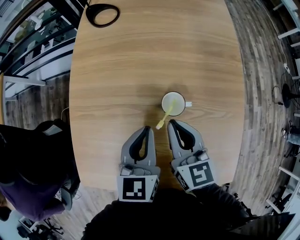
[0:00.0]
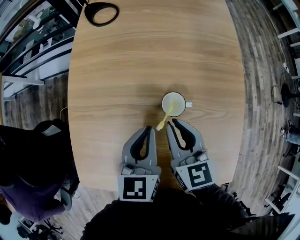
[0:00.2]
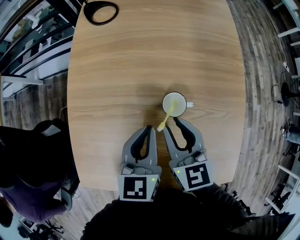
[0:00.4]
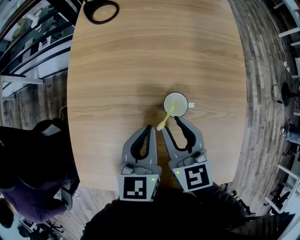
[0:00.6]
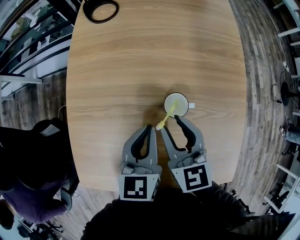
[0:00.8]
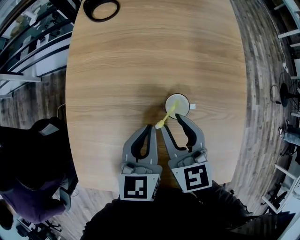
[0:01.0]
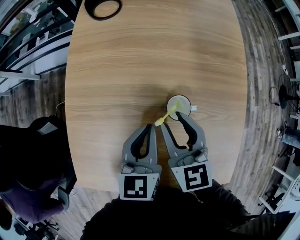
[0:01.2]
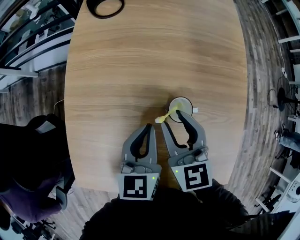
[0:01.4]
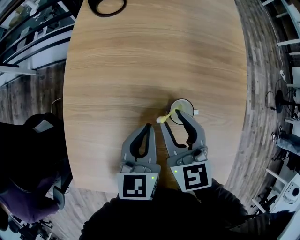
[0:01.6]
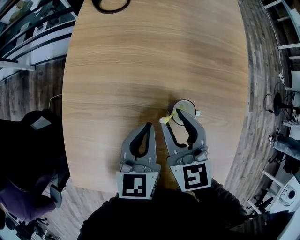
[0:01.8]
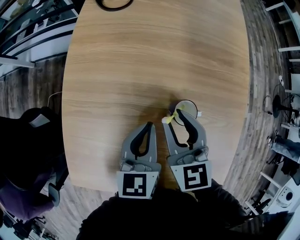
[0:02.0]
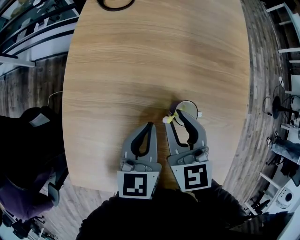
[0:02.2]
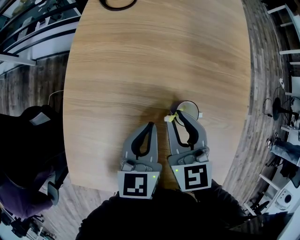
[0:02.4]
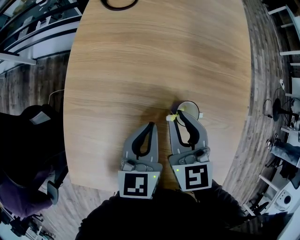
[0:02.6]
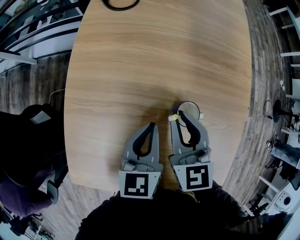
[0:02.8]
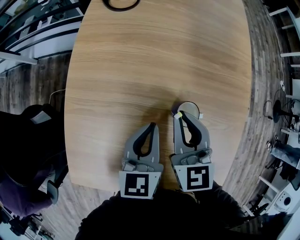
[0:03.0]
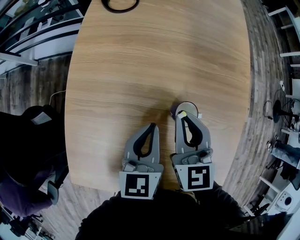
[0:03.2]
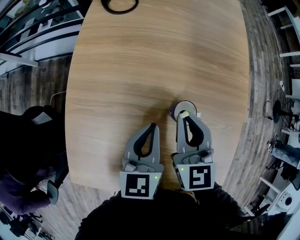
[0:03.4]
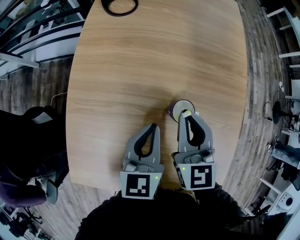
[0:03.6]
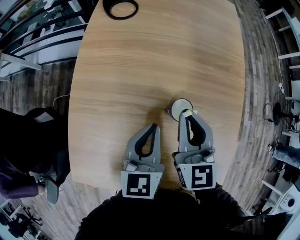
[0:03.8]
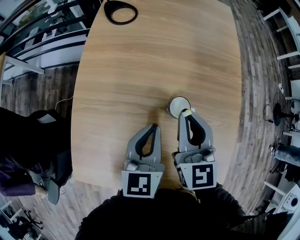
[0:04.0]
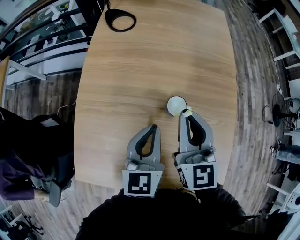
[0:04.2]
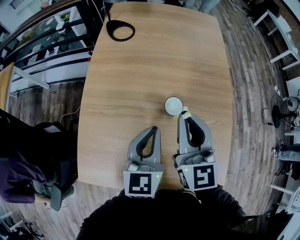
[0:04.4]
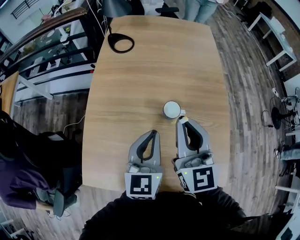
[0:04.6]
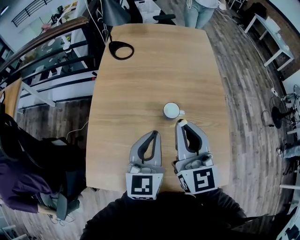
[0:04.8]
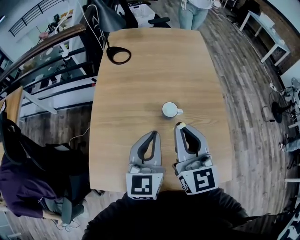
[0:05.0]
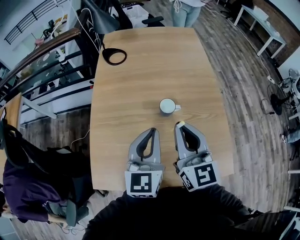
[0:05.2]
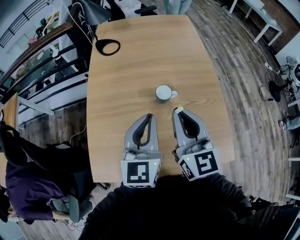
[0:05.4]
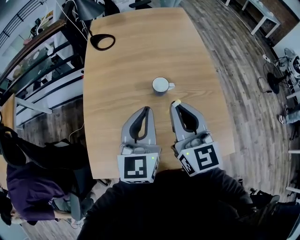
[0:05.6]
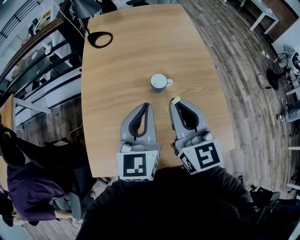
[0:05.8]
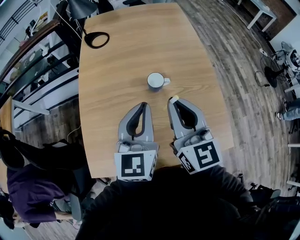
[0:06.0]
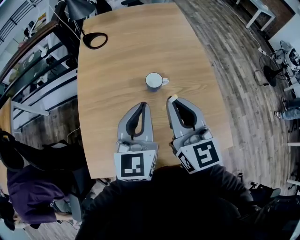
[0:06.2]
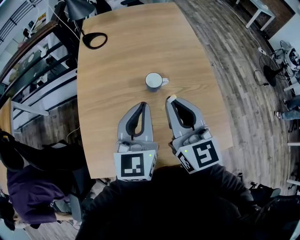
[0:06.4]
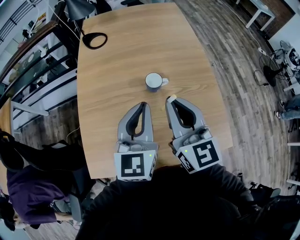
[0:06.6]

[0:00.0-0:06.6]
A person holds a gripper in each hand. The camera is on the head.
0:00.0 to 0:01.6: The right gripper moves approximately 5 cm, and opens its fingers.
0:01.6 to 0:03.2: The right gripper closes.
0:03.2 to 0:05.0: The two grippers go about 20 cm upward and backward. The right gripper turns by roughly 20 degrees. The left gripper rotates about 20 degrees.
0:05.0 to 0:06.6: There are only small adjustments of the grippers.

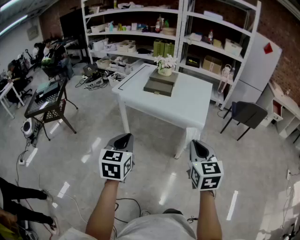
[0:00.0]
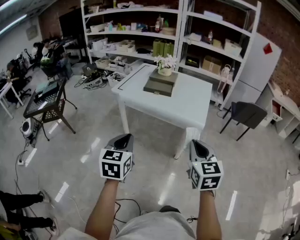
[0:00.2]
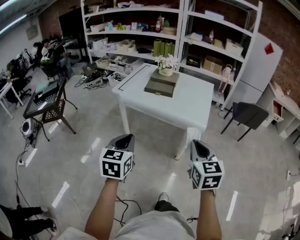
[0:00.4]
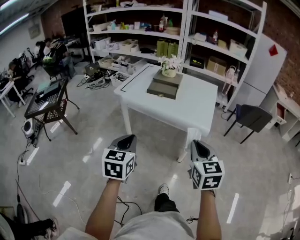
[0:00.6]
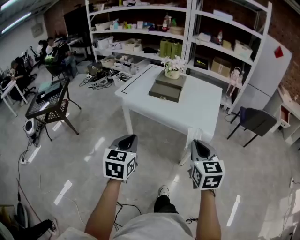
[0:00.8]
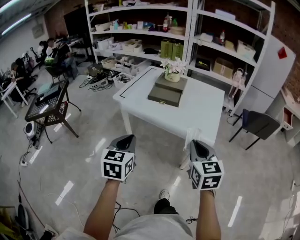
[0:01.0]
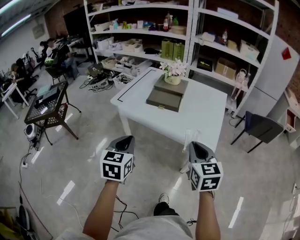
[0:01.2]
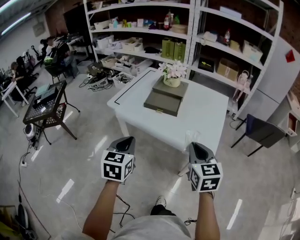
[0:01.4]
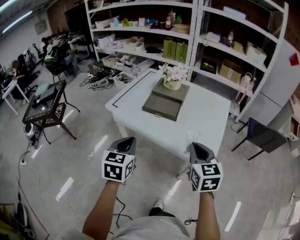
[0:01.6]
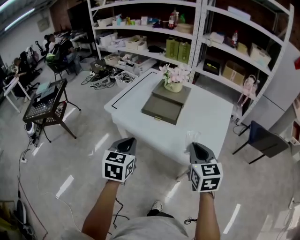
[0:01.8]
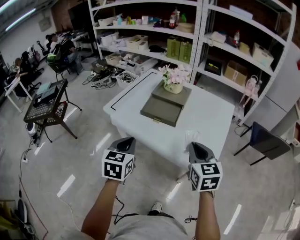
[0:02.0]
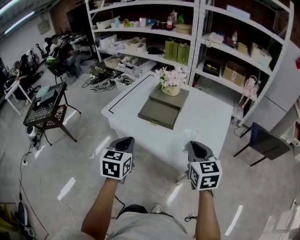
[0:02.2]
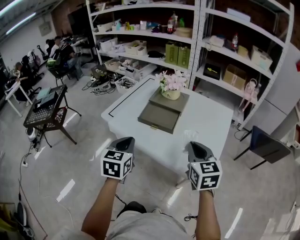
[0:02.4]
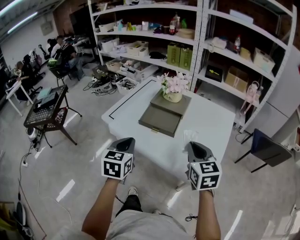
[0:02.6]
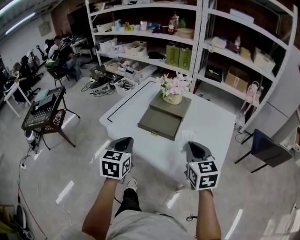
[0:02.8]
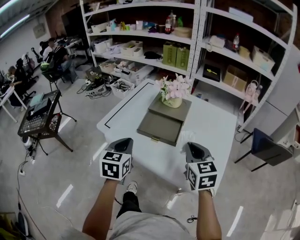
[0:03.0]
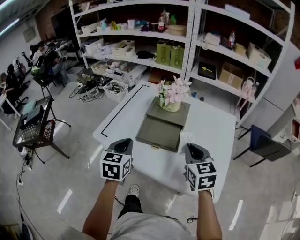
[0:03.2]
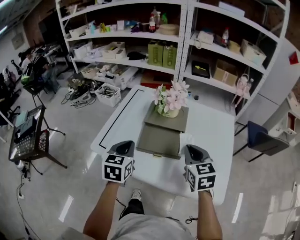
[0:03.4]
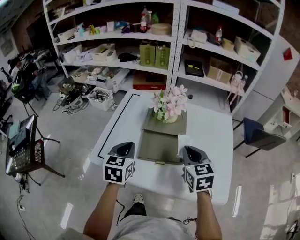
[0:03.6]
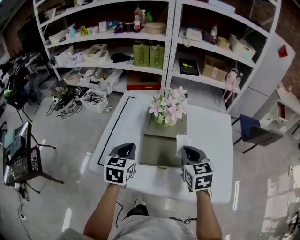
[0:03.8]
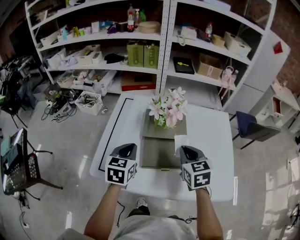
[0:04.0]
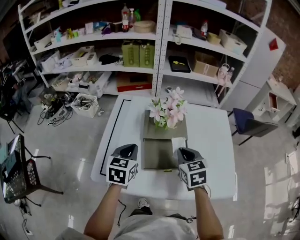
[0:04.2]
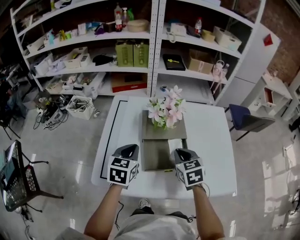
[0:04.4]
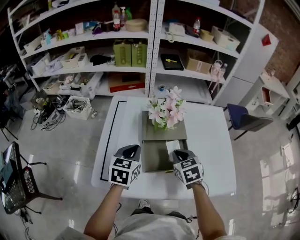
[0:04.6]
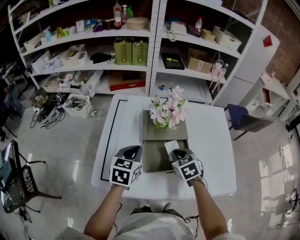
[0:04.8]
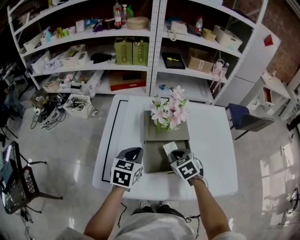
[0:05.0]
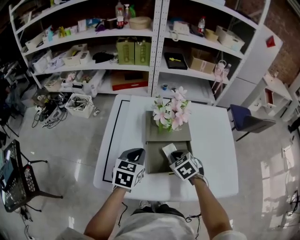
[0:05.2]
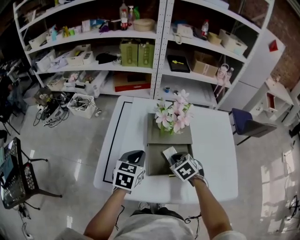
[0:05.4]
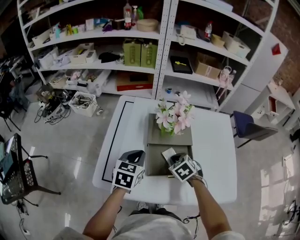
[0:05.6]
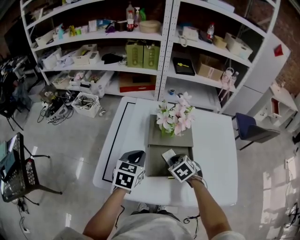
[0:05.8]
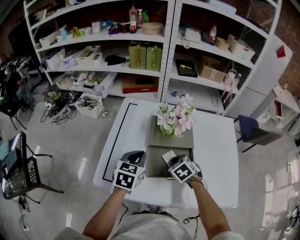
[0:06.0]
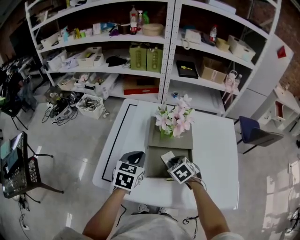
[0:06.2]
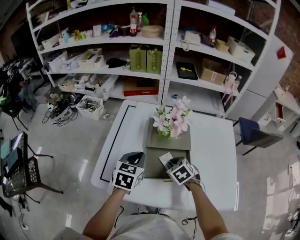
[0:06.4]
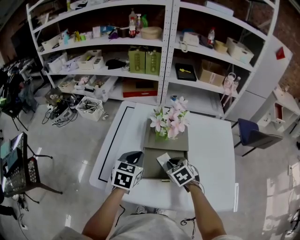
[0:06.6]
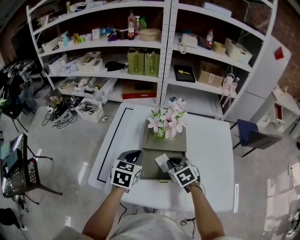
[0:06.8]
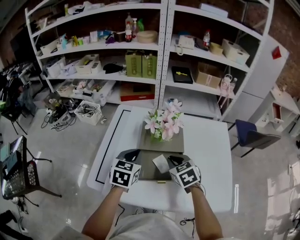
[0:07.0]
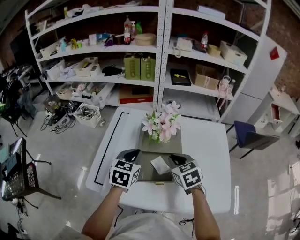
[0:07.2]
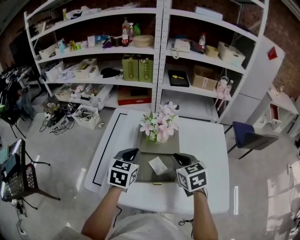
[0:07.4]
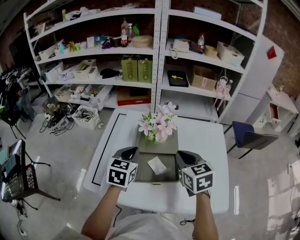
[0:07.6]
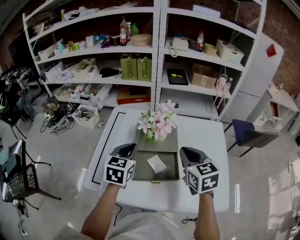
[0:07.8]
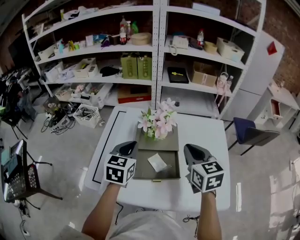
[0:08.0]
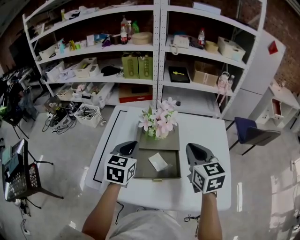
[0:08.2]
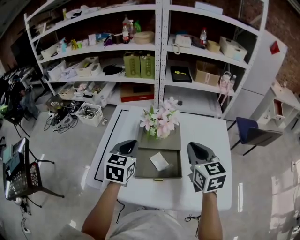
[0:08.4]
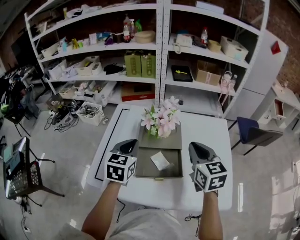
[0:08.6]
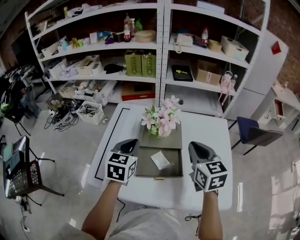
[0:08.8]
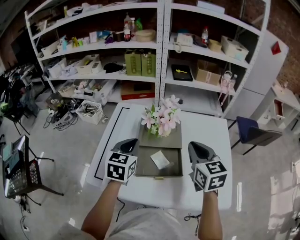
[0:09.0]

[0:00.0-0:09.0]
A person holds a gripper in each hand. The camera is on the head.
0:00.0 to 0:01.6: The two grippers go approximately 30 cm forward.
0:01.6 to 0:03.0: The grippers both shift forward by approximately 20 cm.
0:03.0 to 0:04.4: The right gripper ends up roughly 20 cm from where it was, and turns by some 30 degrees; the left gripper moves approximately 25 cm, and changes its angle by some 30 degrees.
0:04.4 to 0:06.0: The right gripper travels downward by some 10 cm, and swivels some 30 degrees.
0:06.0 to 0:07.6: The right gripper heads upward and to the right, covering about 20 cm, and angles its fingers upward, by roughly 30 degrees. Meanwhile the left gripper travels upward by roughly 5 cm.
0:07.6 to 0:09.0: The grippers make only small movements.

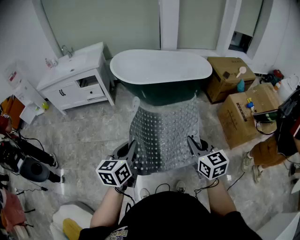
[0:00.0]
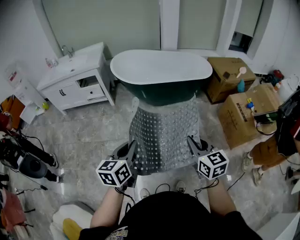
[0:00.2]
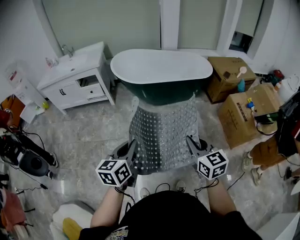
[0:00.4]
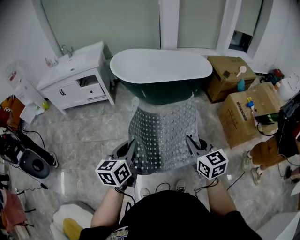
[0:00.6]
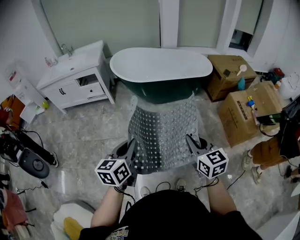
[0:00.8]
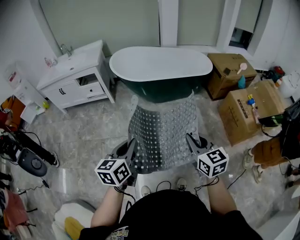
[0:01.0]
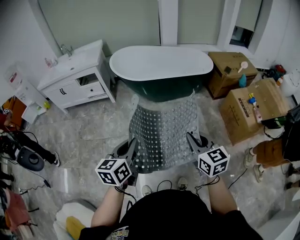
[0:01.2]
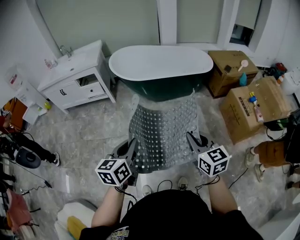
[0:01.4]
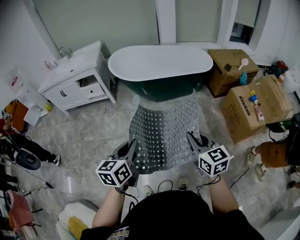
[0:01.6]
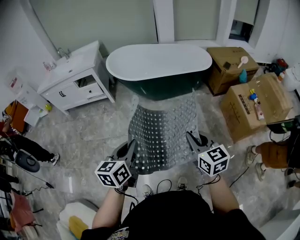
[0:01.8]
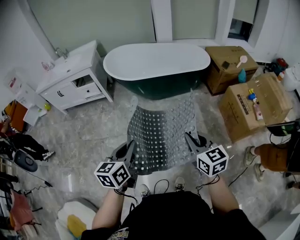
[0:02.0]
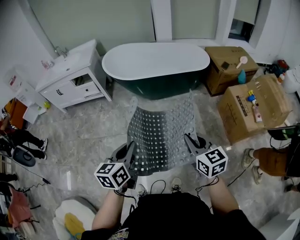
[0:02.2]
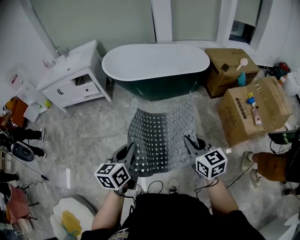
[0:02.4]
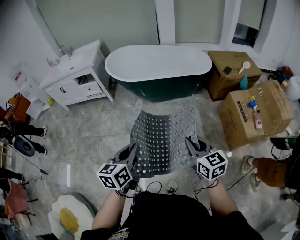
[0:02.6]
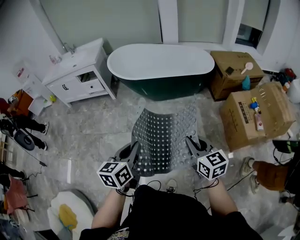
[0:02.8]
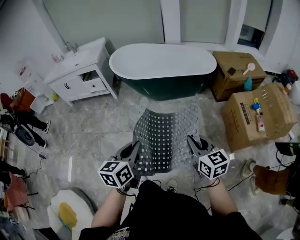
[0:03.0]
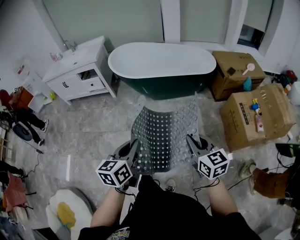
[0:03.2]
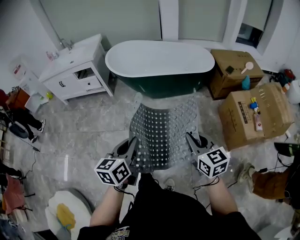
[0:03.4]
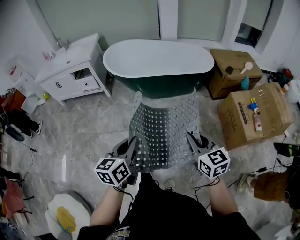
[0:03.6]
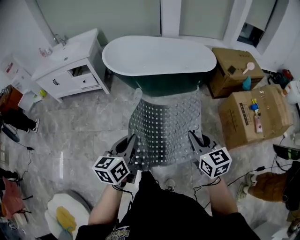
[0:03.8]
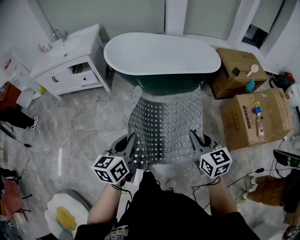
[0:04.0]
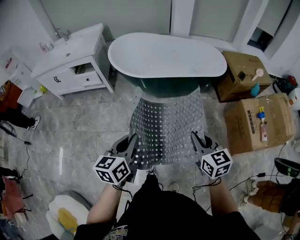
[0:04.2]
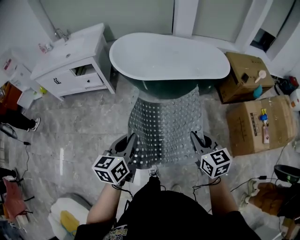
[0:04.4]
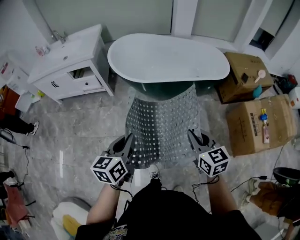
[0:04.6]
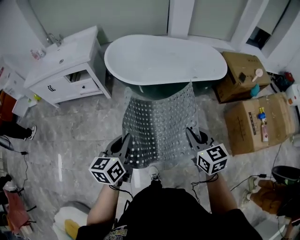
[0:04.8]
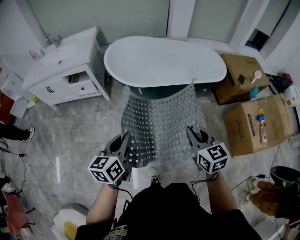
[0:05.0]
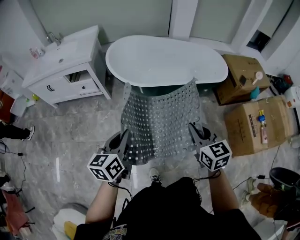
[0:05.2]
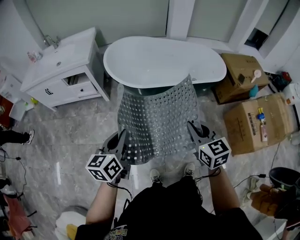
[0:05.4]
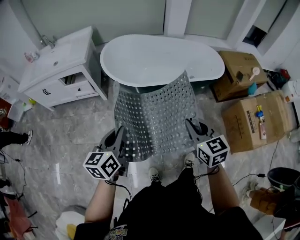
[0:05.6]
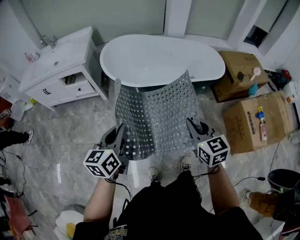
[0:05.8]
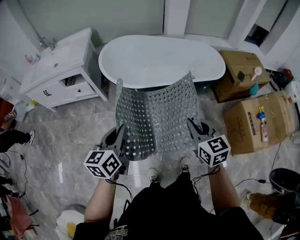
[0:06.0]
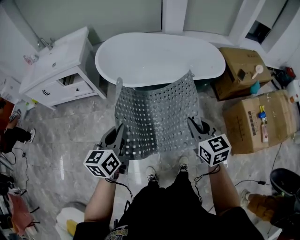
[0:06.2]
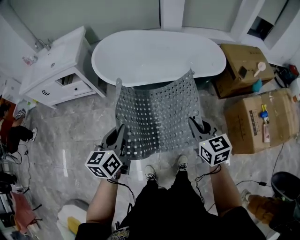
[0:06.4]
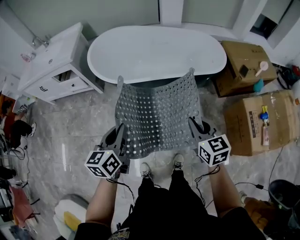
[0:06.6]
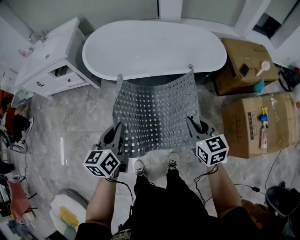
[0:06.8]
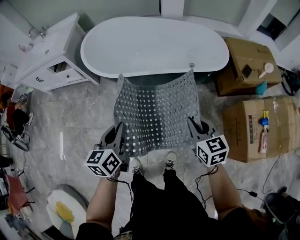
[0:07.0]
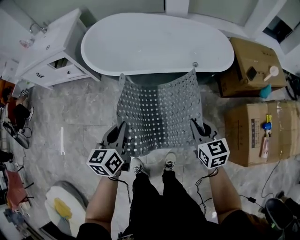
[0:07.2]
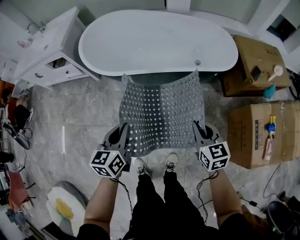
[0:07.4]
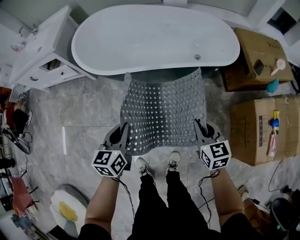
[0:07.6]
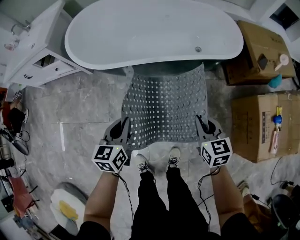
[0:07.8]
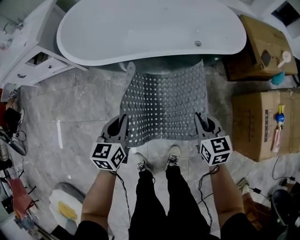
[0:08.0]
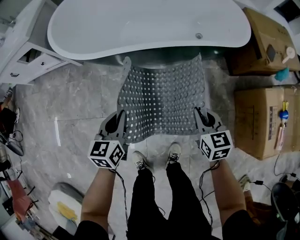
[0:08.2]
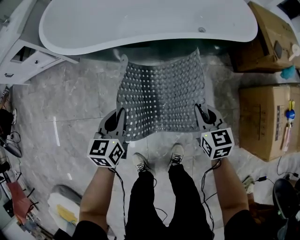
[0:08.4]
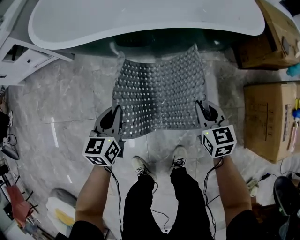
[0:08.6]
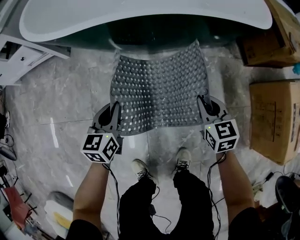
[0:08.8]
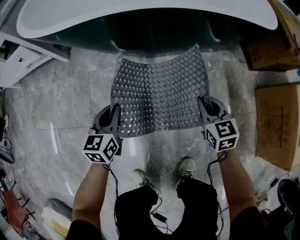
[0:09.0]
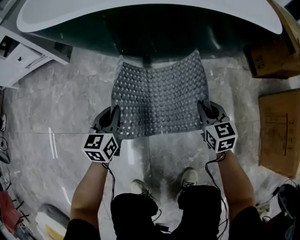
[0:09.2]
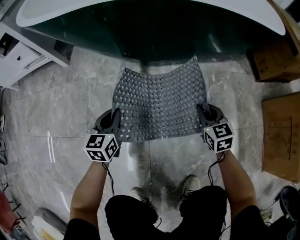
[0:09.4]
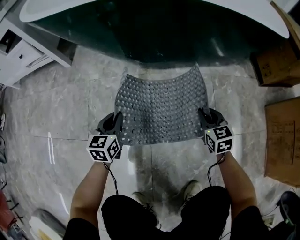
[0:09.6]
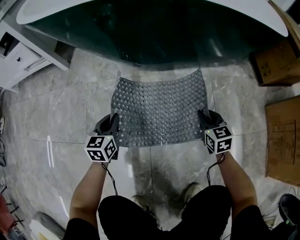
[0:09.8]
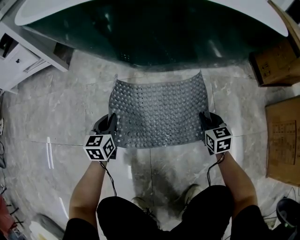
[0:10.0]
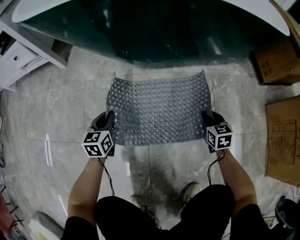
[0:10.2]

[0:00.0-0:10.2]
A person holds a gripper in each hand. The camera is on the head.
0:00.0 to 0:01.4: The grippers stay close to where they were, moving slightly.
0:01.4 to 0:03.0: Both grippers travel together to the right, about 15 cm.
0:03.0 to 0:04.4: The grippers both shift forward and to the left by some 30 cm.
0:04.4 to 0:05.8: The left gripper goes about 15 cm forward and to the left; the right gripper goes some 10 cm forward.
0:05.8 to 0:07.2: The two grippers go some 30 cm to the right and downward.
0:07.2 to 0:08.8: The two grippers go roughly 40 cm downward.
0:08.8 to 0:10.2: Both grippers move downward, about 30 cm.
